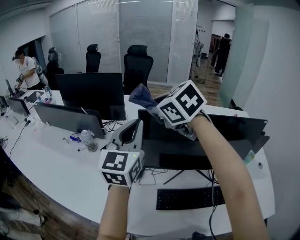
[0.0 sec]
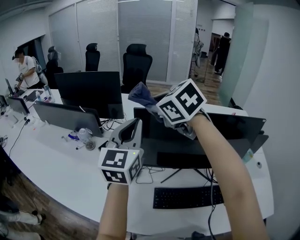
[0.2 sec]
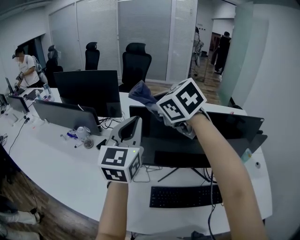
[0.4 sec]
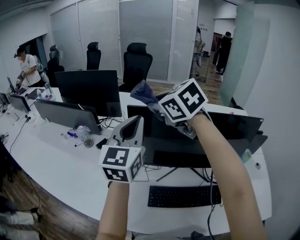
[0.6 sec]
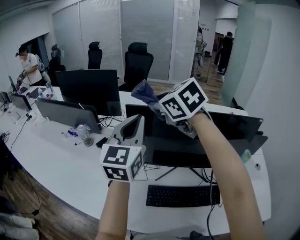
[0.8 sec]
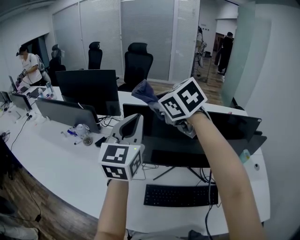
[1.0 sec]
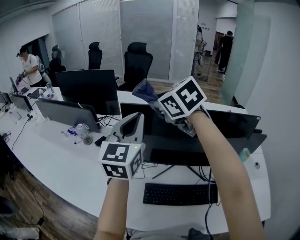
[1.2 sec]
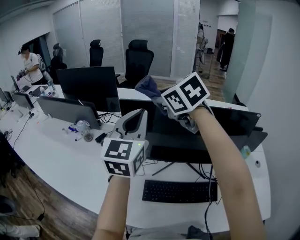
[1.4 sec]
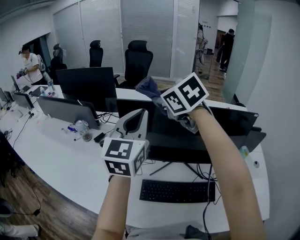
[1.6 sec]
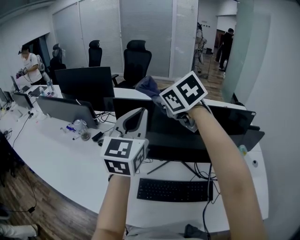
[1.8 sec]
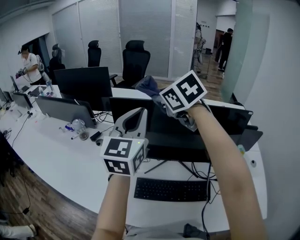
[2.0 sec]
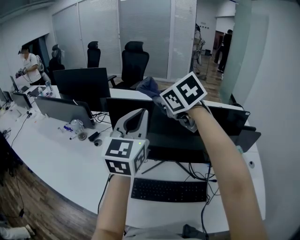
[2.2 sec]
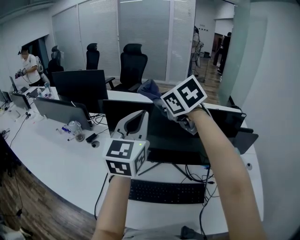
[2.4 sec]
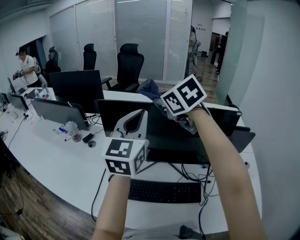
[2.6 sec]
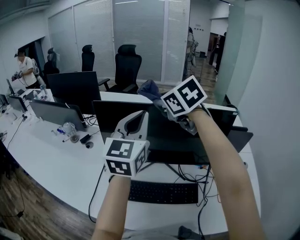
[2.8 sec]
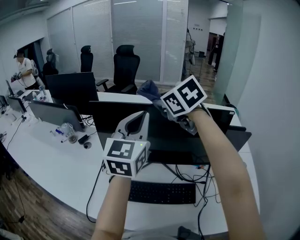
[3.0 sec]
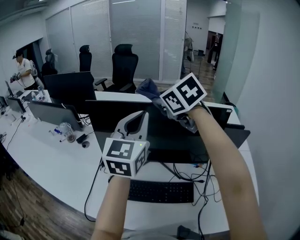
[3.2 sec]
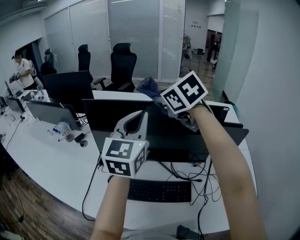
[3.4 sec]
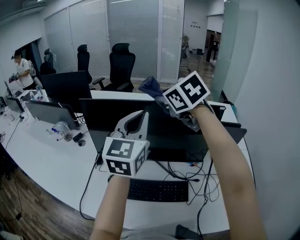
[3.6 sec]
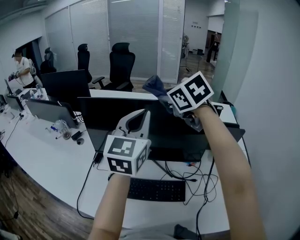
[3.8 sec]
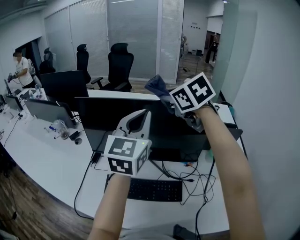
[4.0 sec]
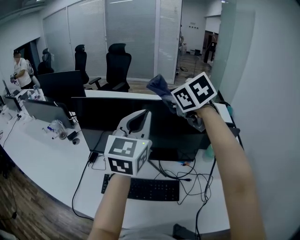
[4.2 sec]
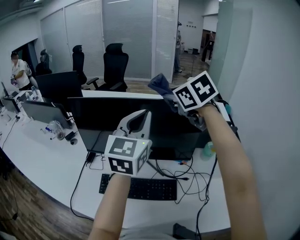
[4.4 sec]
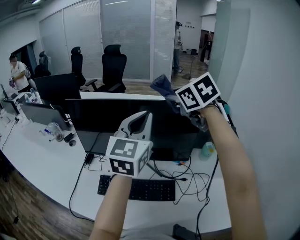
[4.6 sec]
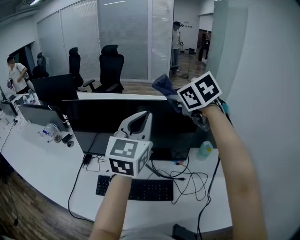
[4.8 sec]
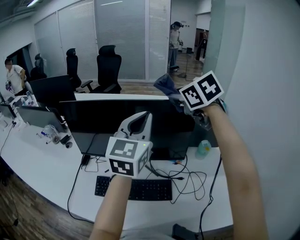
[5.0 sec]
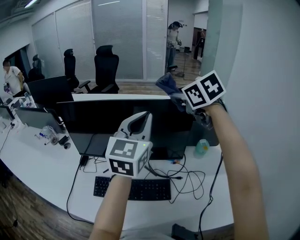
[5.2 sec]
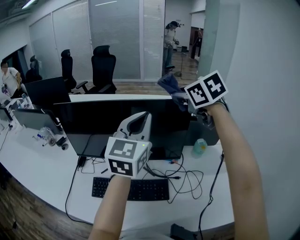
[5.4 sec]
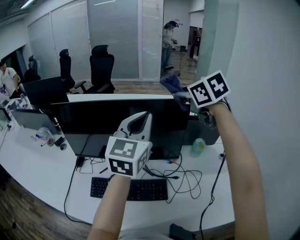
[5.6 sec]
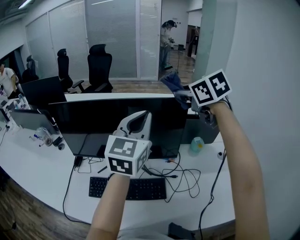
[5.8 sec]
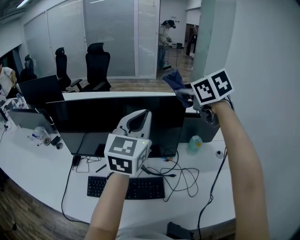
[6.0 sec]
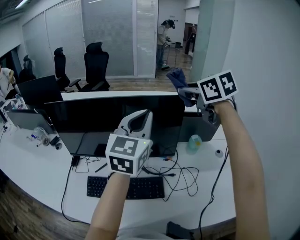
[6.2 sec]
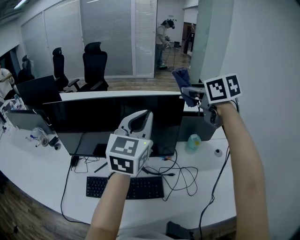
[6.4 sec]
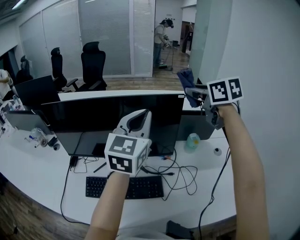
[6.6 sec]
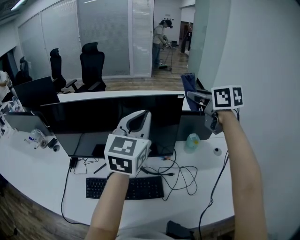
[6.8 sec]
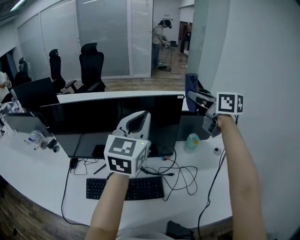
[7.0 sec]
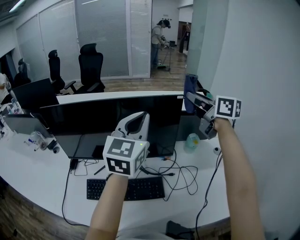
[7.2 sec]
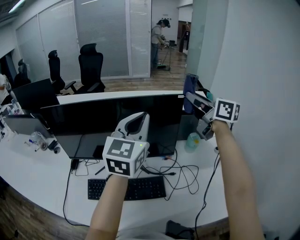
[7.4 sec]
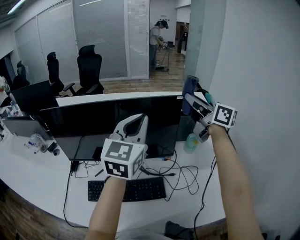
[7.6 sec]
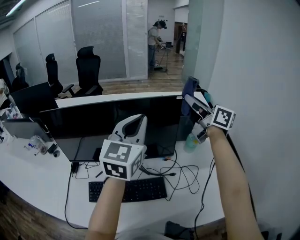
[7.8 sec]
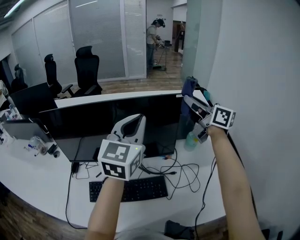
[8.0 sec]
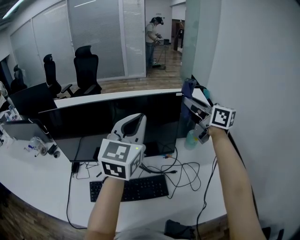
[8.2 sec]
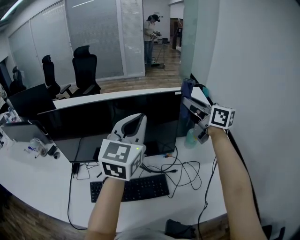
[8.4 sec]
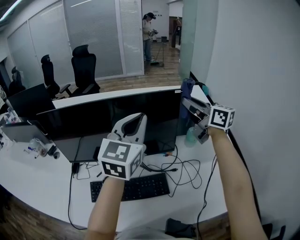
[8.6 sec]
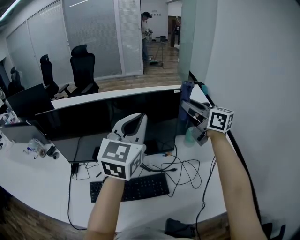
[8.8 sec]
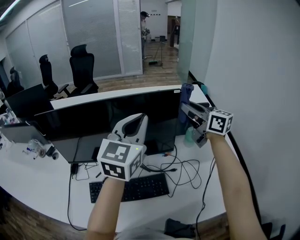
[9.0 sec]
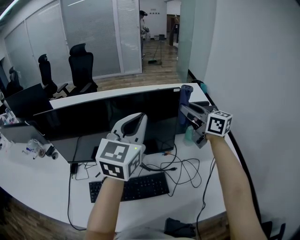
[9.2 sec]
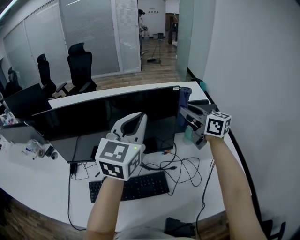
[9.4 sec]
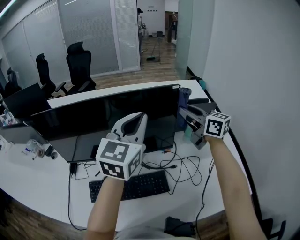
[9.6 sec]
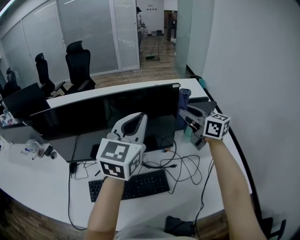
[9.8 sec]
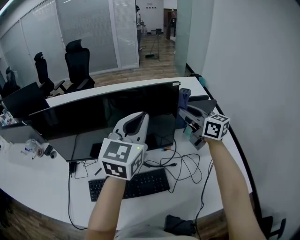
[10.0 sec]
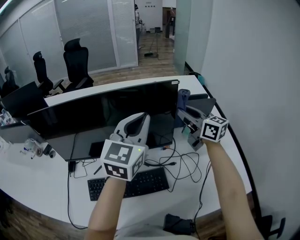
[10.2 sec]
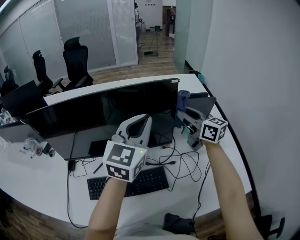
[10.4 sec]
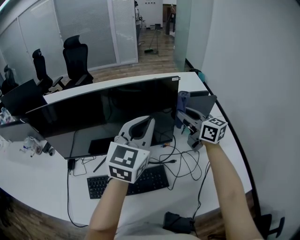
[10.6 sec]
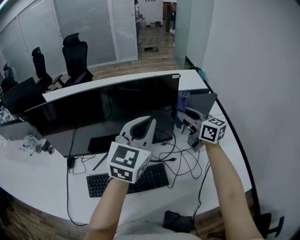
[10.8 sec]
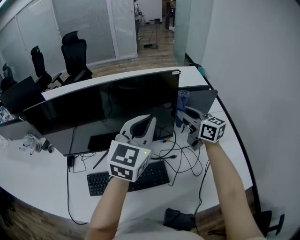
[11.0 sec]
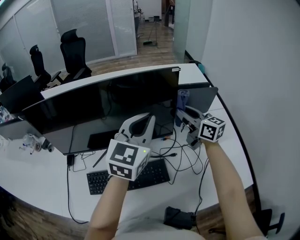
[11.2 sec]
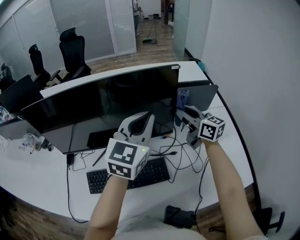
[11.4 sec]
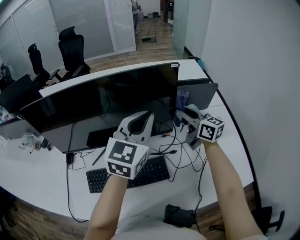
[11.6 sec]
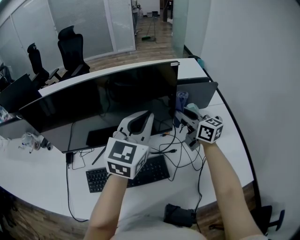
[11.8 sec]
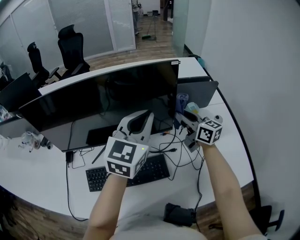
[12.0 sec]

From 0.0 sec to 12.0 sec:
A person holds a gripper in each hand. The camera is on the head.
From 0.0 sec to 1.6 sec: Both grippers travel together to the right, roughly 10 cm.
From 1.6 sec to 3.0 sec: The grippers both shift to the right by approximately 10 cm.
From 3.0 sec to 4.4 sec: Both grippers move to the right, roughly 15 cm.
From 4.4 sec to 6.0 sec: The right gripper travels to the right by some 15 cm, while the left gripper shifts approximately 10 cm to the right.
From 6.0 sec to 7.6 sec: The right gripper shifts some 5 cm to the right, and angles its fingers upward, by about 40 degrees.
From 7.6 sec to 9.0 sec: The right gripper moves downward, approximately 5 cm.
From 9.0 sec to 10.4 sec: The right gripper goes roughly 10 cm downward.
From 10.4 sec to 12.0 sec: The right gripper goes some 10 cm downward.

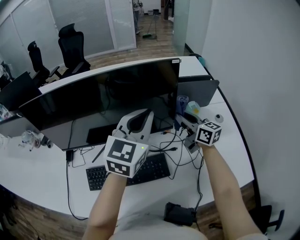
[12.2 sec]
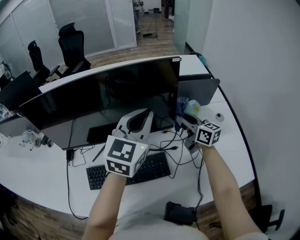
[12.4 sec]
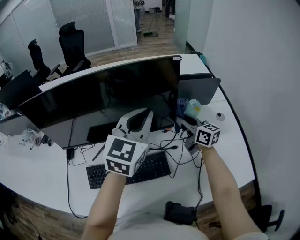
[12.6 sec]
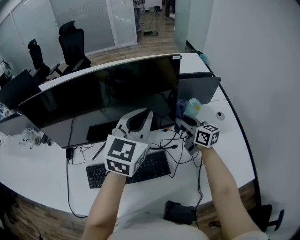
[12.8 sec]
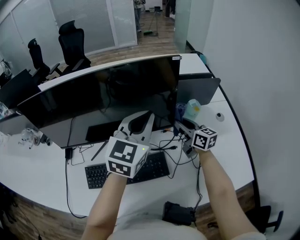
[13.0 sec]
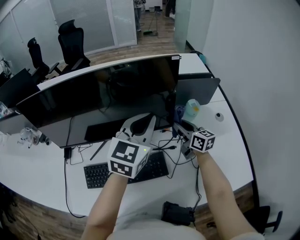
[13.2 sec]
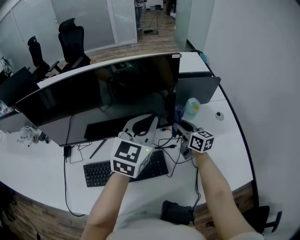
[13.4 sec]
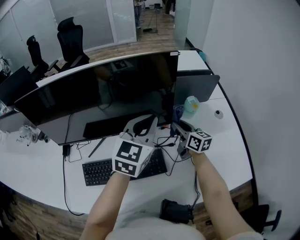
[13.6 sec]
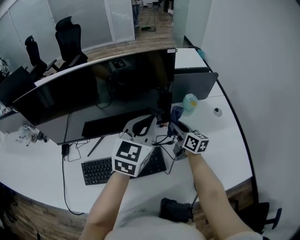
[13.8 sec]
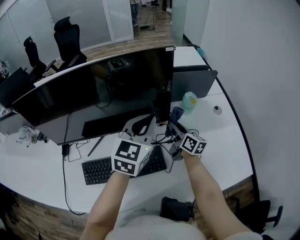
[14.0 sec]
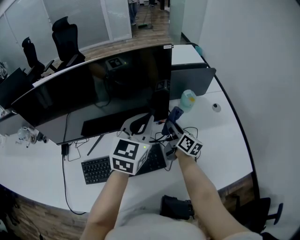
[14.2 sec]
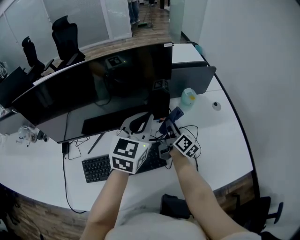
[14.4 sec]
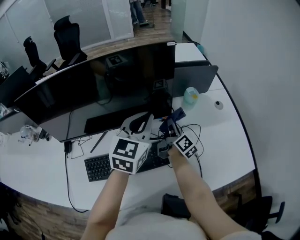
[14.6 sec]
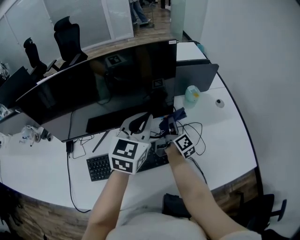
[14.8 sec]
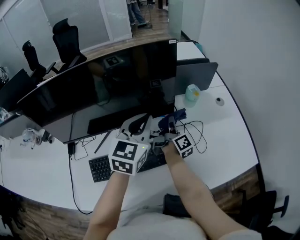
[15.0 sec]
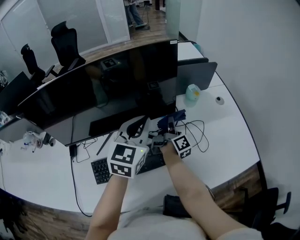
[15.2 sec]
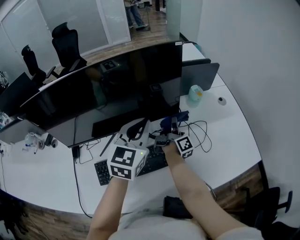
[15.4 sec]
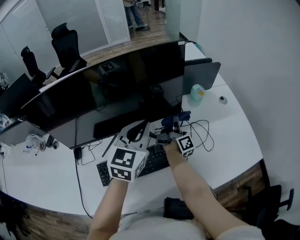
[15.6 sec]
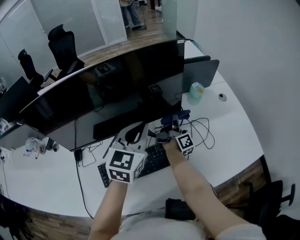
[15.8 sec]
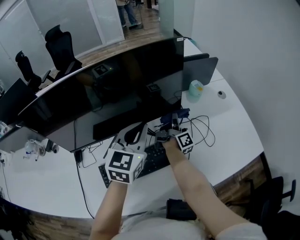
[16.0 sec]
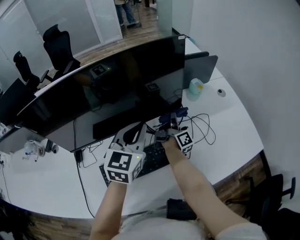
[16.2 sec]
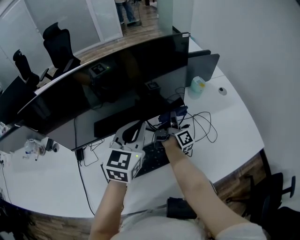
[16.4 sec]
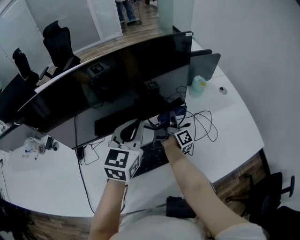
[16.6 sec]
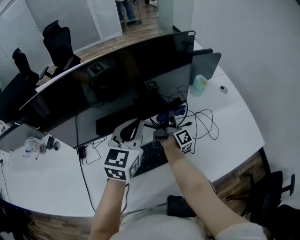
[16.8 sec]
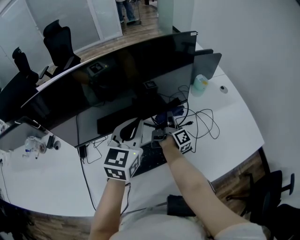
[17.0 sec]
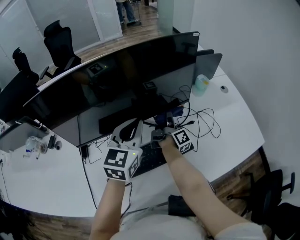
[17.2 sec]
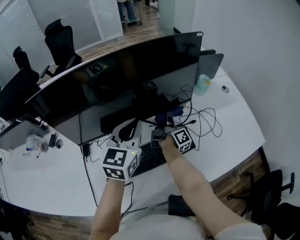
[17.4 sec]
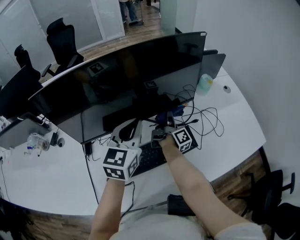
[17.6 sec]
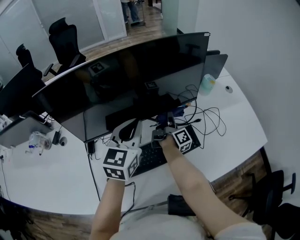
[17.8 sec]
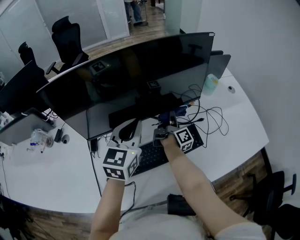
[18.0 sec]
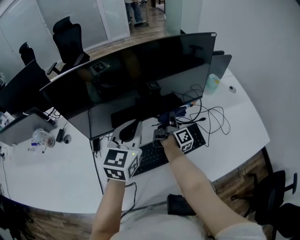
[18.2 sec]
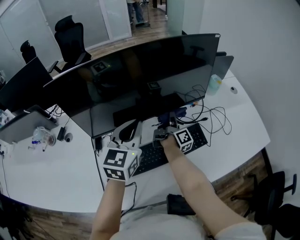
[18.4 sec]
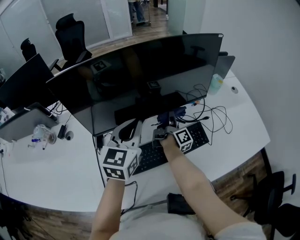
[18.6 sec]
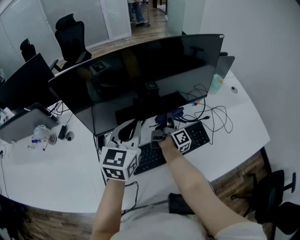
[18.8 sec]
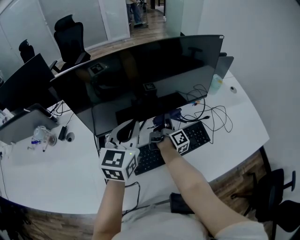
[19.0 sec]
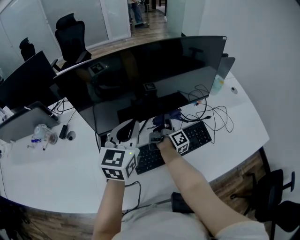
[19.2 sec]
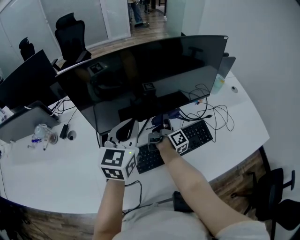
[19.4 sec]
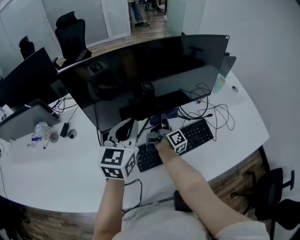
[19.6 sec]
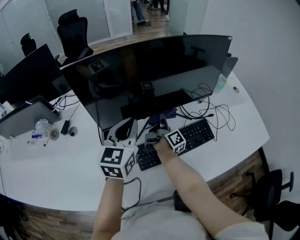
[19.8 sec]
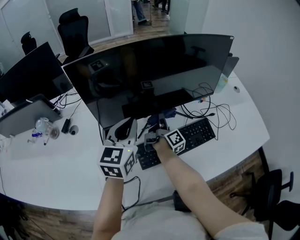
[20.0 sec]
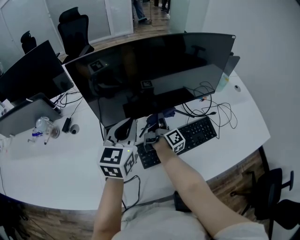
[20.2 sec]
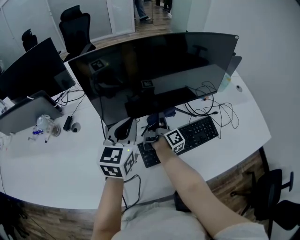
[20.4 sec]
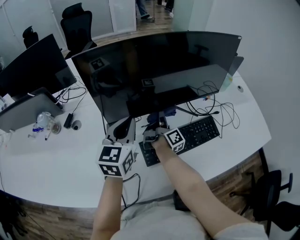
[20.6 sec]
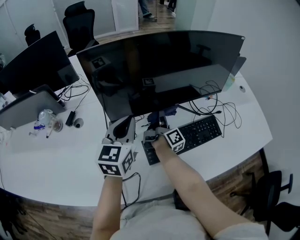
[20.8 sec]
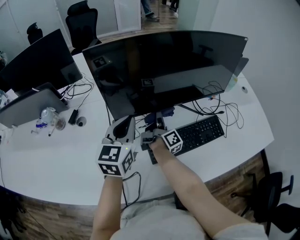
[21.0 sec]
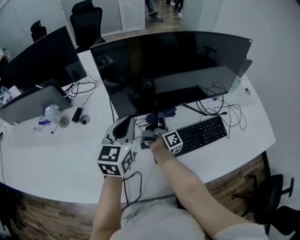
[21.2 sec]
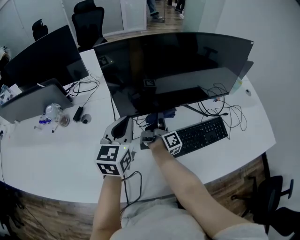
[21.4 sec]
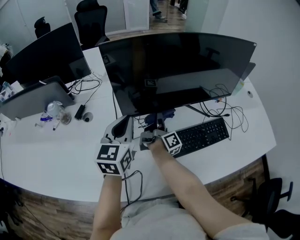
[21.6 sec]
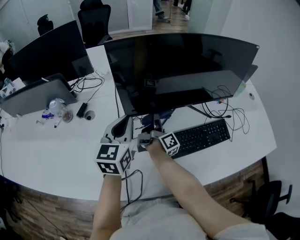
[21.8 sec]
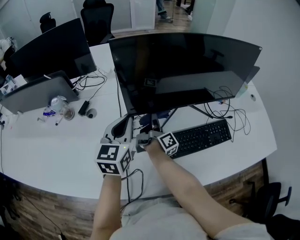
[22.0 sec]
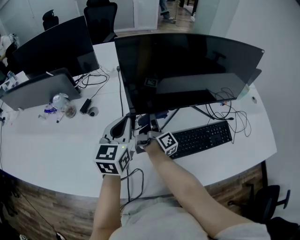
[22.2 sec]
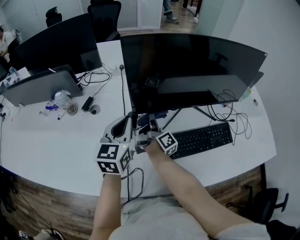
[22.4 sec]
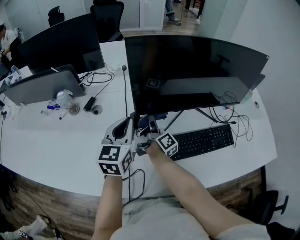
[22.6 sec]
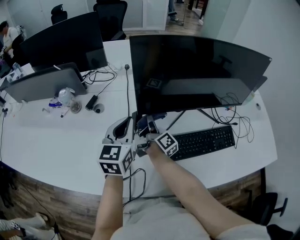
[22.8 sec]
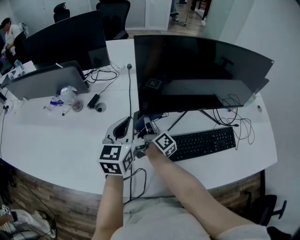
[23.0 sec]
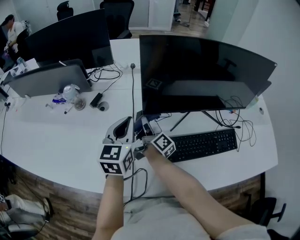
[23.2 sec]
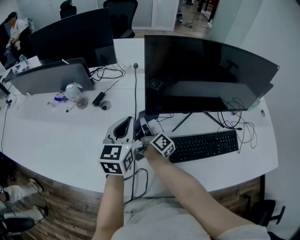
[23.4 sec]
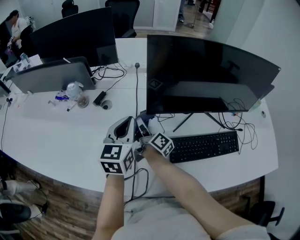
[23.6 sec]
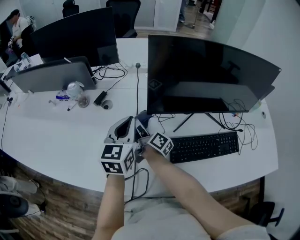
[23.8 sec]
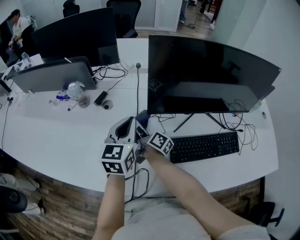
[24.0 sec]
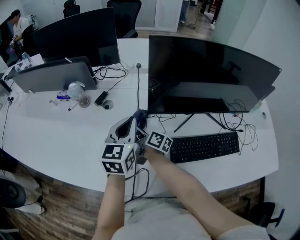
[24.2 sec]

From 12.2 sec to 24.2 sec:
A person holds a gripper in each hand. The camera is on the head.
From 12.2 sec to 13.8 sec: Both grippers travel together downward, some 10 cm.
From 13.8 sec to 15.2 sec: The left gripper shifts by roughly 5 cm; the right gripper changes its angle by approximately 60 degrees.
From 15.2 sec to 16.6 sec: The left gripper shifts some 5 cm to the left.
From 16.6 sec to 18.2 sec: Both grippers travel together to the left and backward, approximately 10 cm.
From 18.2 sec to 19.8 sec: The right gripper travels to the left and backward by about 10 cm, while the left gripper shifts approximately 10 cm to the left.
From 19.8 sec to 21.2 sec: Both grippers travel together to the left, roughly 10 cm.
From 21.2 sec to 22.6 sec: The right gripper heads to the left, covering roughly 10 cm. Meanwhile the left gripper shifts about 5 cm to the left.
From 22.6 sec to 24.2 sec: The right gripper moves to the left, about 15 cm, and changes its angle by about 40 degrees.
